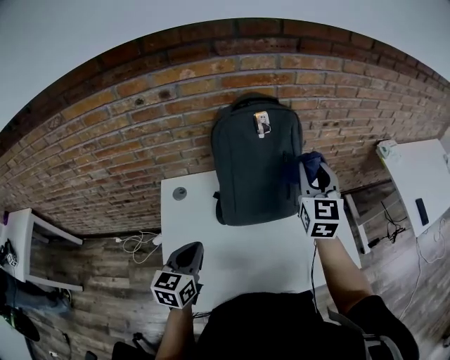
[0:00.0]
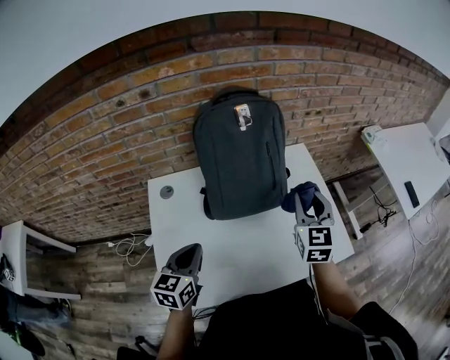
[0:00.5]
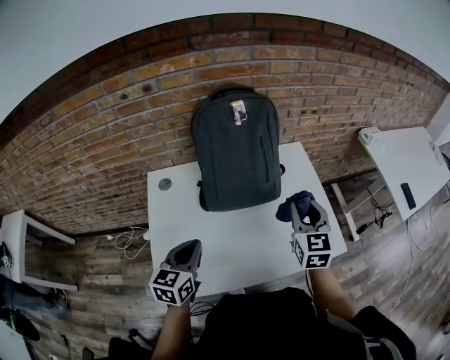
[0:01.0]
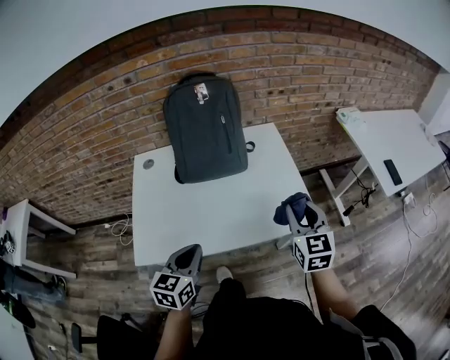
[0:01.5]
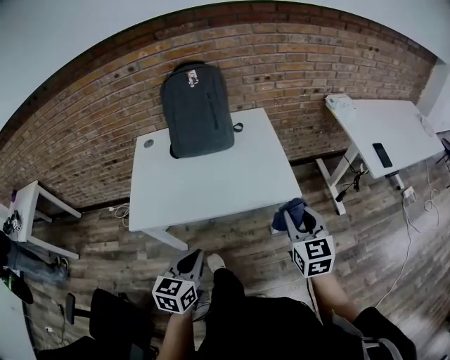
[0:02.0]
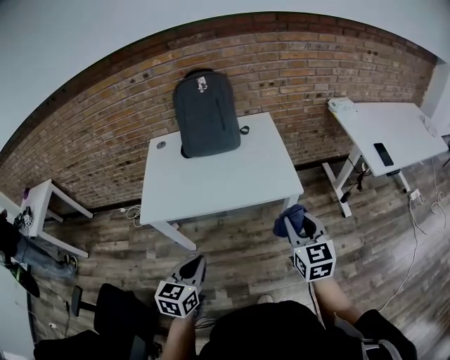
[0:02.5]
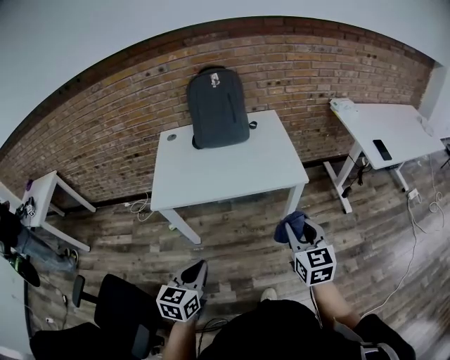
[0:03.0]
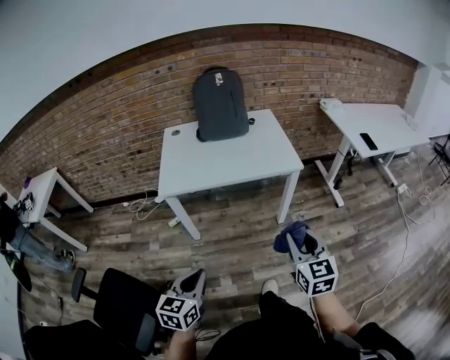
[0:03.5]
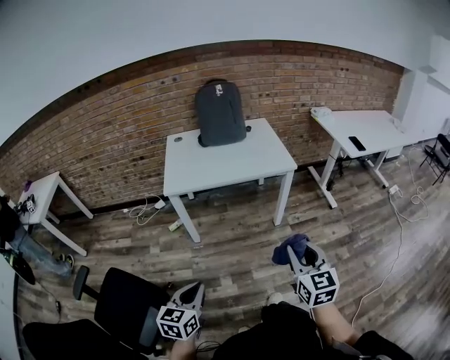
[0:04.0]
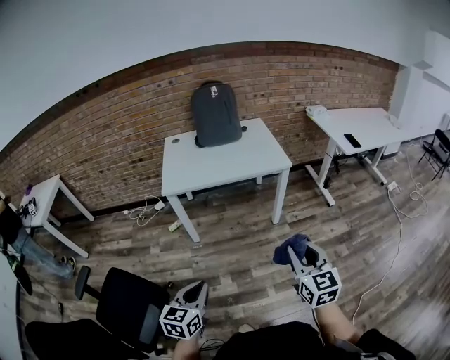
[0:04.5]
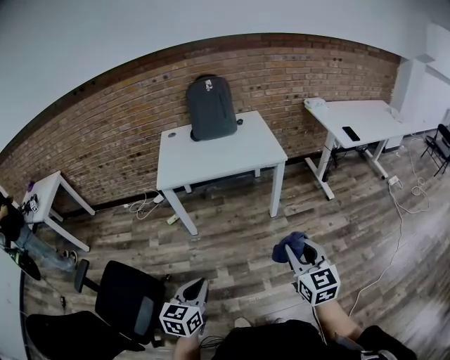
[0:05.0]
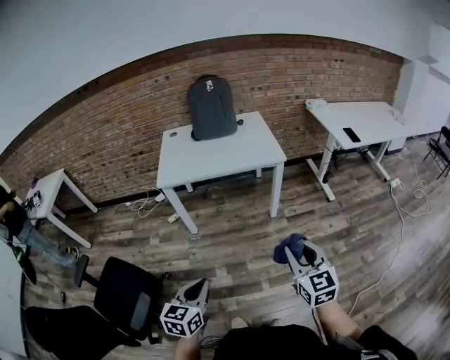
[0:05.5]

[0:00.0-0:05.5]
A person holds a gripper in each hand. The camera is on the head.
0:00.0 to 0:02.0: The two grippers travel together, backward and to the right, roughly 40 cm.
0:02.0 to 0:03.5: The grippers both shift backward by approximately 30 cm.
0:03.5 to 0:05.5: Both grippers travel together backward and to the right, some 15 cm.

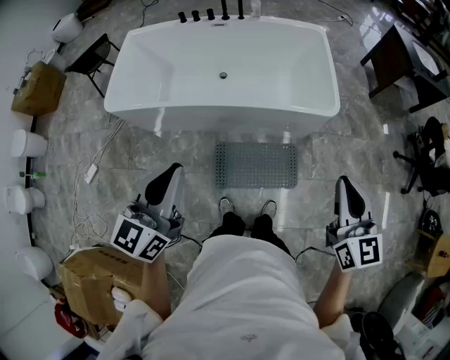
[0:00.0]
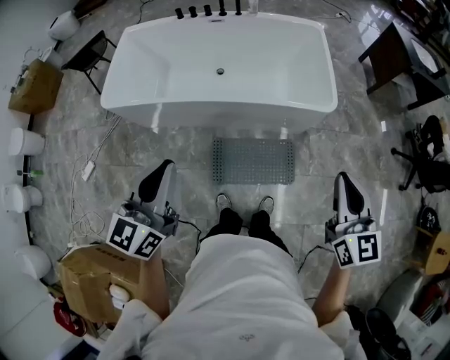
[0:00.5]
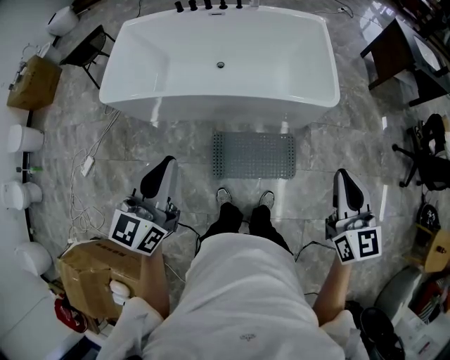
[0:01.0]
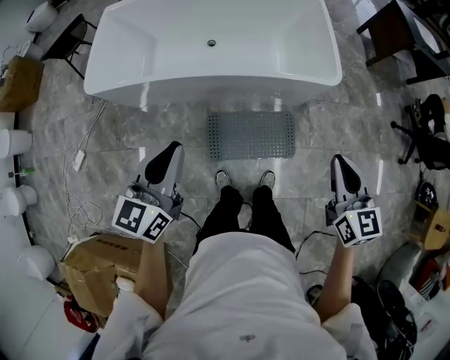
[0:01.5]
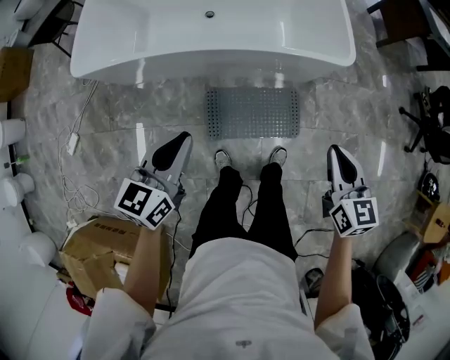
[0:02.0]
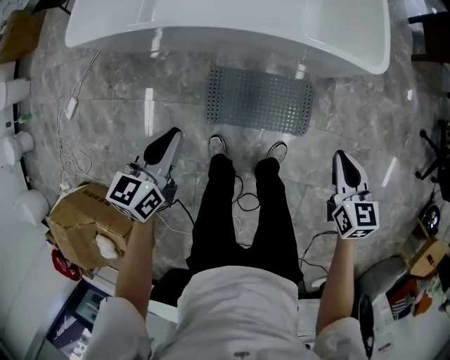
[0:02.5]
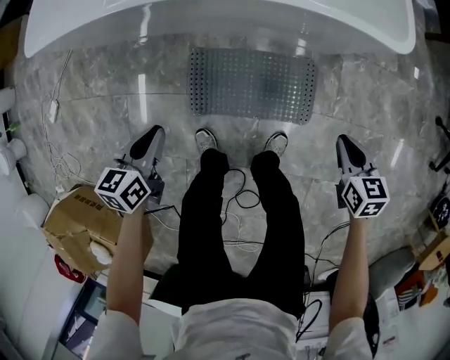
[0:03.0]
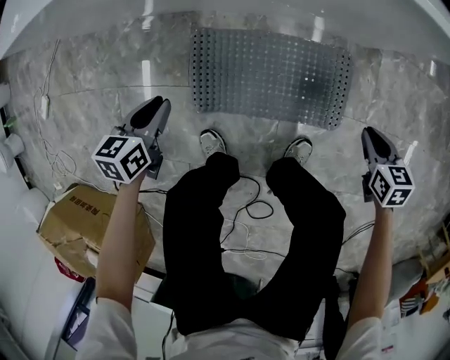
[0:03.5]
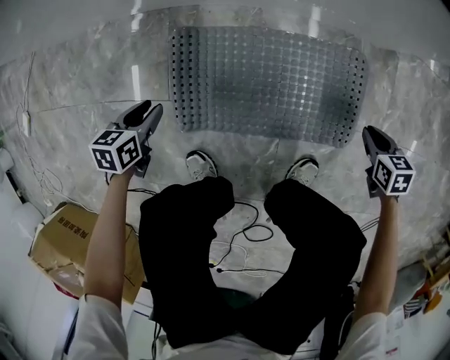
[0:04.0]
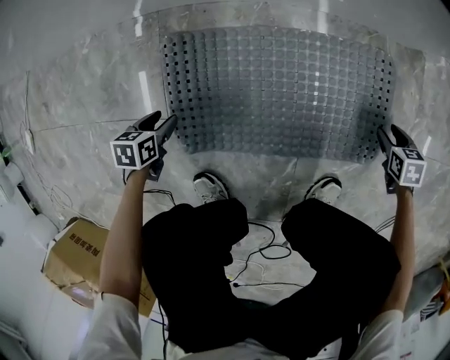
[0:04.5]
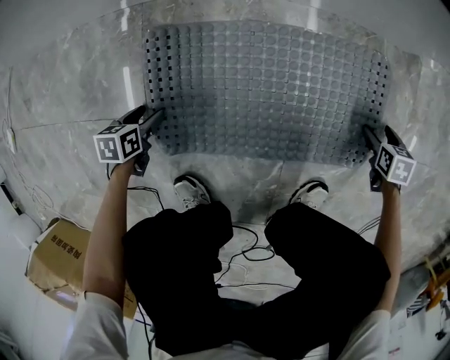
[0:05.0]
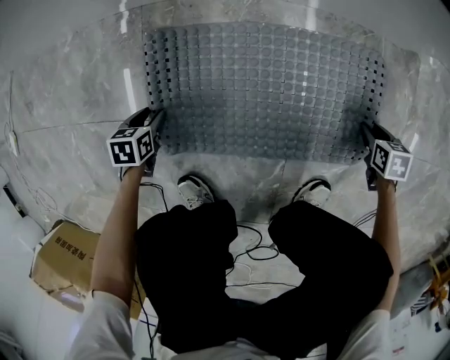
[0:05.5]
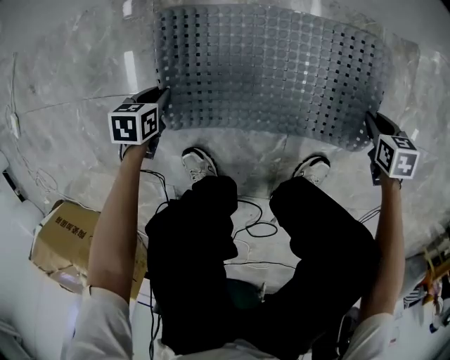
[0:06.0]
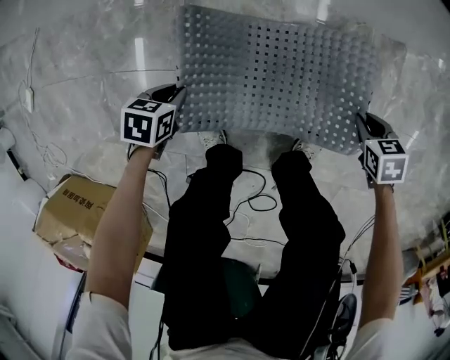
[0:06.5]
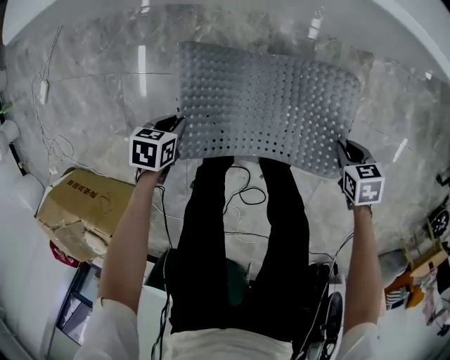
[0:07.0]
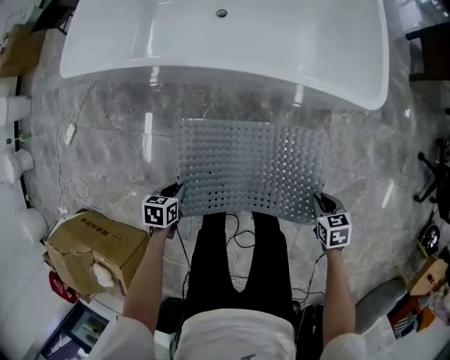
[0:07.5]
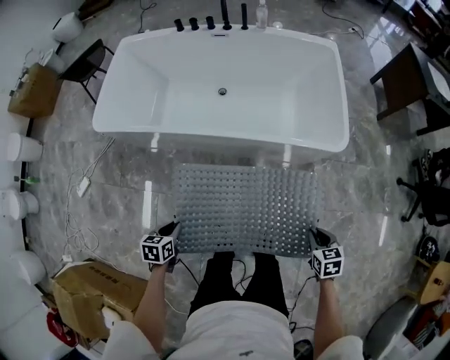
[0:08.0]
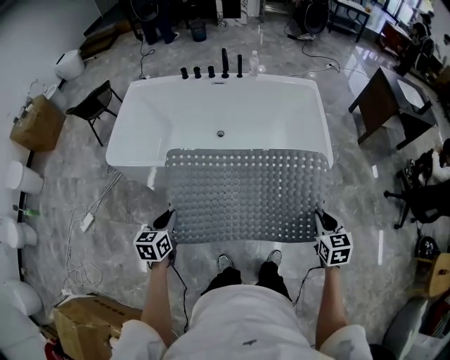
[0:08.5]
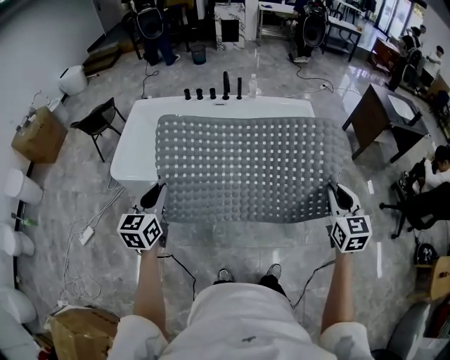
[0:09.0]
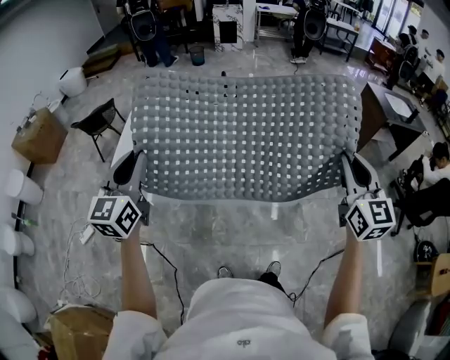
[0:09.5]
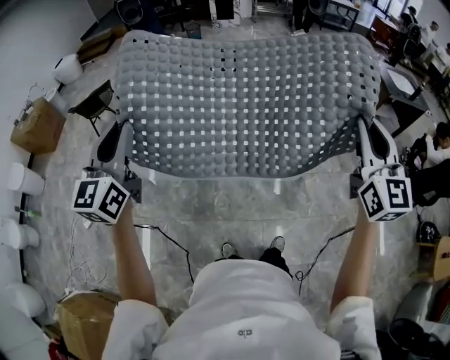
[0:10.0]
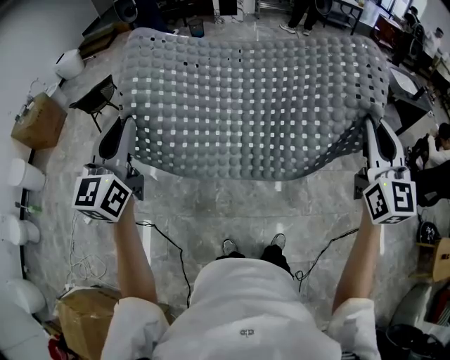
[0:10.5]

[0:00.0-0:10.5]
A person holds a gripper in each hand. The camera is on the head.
0:00.0 to 0:02.0: The grippers both shift downward by approximately 20 cm.
0:02.0 to 0:04.0: The two grippers go roughly 80 cm downward. The right gripper tips its fingers downward by about 40 degrees, while the left gripper tilts its fingers about 40 degrees downward, and opens its fingers.
0:04.0 to 0:06.5: The right gripper travels downward and back again, approximately 15 cm each way, and opens, then closes again; the left gripper travels downward and back again, some 20 cm each way, and opens and closes again.
0:06.5 to 0:08.5: Both grippers travel together upward, some 70 cm. The right gripper angles its fingers upward, by roughly 40 degrees, while the left gripper angles its fingers upward, by some 40 degrees.
0:08.5 to 0:10.5: Both grippers move upward, approximately 35 cm. The right gripper tilts its fingers approximately 50 degrees upward, while the left gripper tips its fingers upward by some 40 degrees.

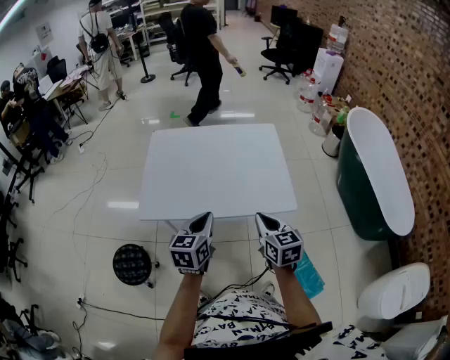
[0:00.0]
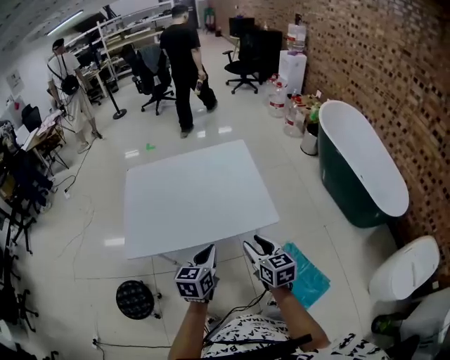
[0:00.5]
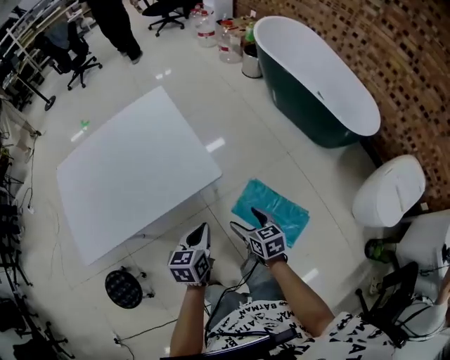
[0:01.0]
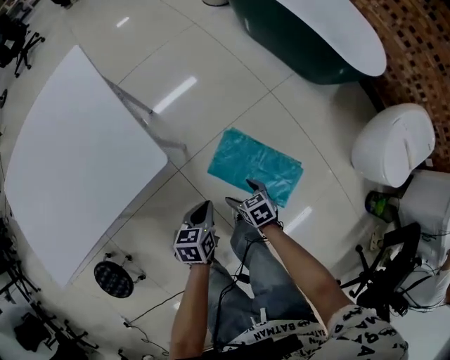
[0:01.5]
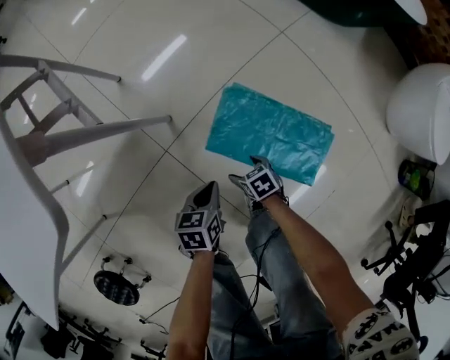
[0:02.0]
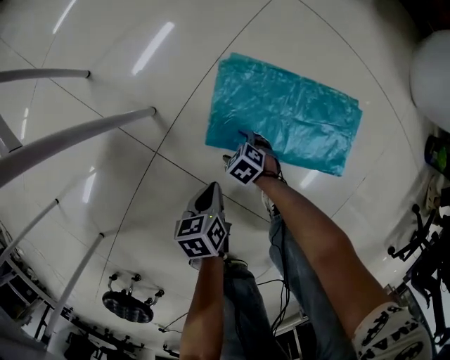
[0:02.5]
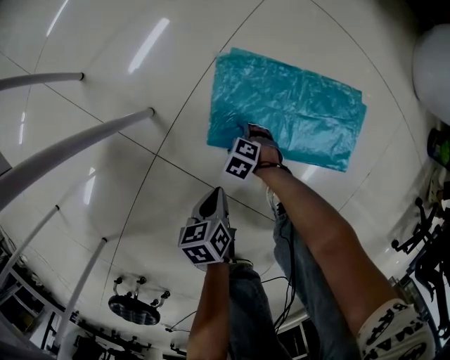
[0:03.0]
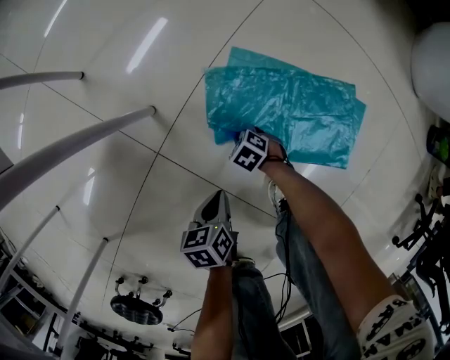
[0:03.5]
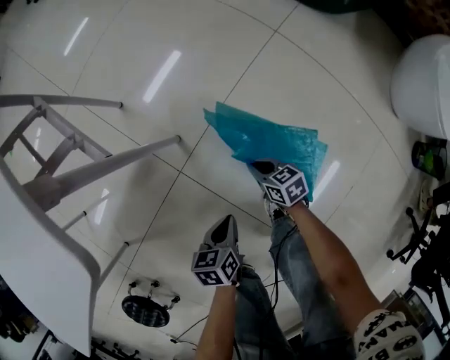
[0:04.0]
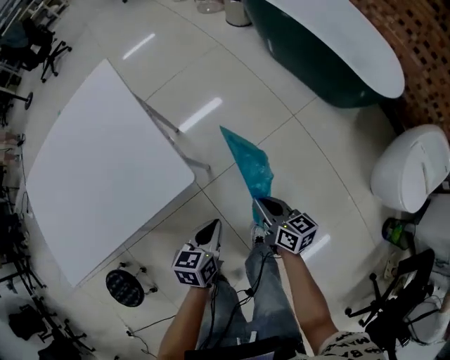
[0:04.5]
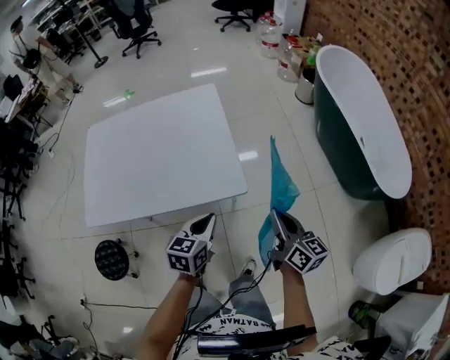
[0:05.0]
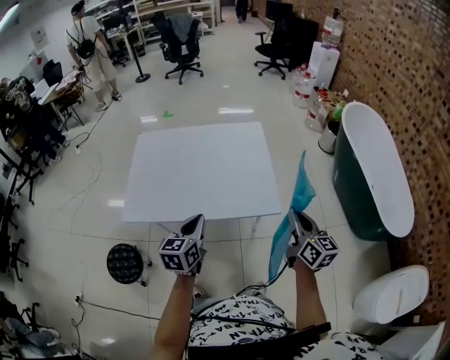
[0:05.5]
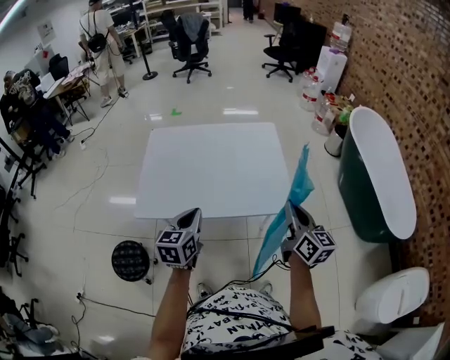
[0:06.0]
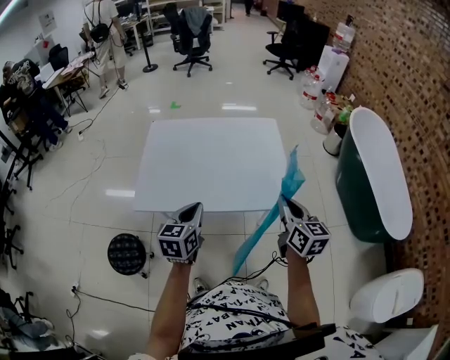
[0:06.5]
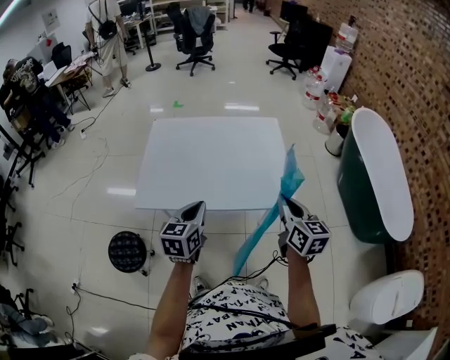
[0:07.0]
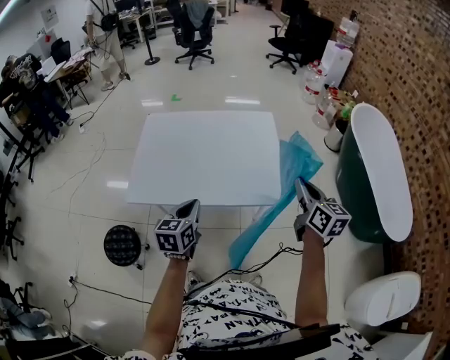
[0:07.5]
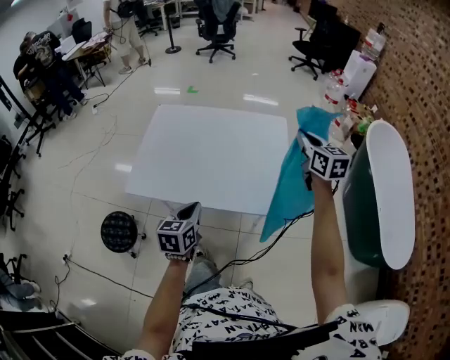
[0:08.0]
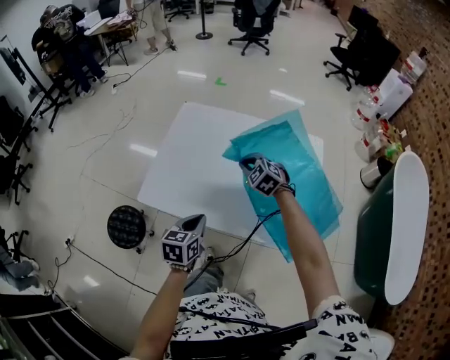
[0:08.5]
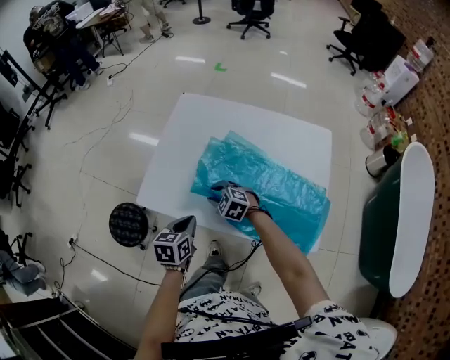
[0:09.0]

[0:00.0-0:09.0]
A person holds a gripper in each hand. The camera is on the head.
0:00.0 to 0:02.0: The right gripper travels downward by some 80 cm, angles its fingers downward, by some 40 degrees, and opens its fingers. The left gripper shifts some 80 cm downward and to the right, and points its fingers approximately 40 degrees further downward.
0:02.0 to 0:04.5: Both grippers move upward, some 40 cm. The right gripper angles its fingers upward, by roughly 50 degrees, and closes.
0:04.5 to 0:07.0: The left gripper moves roughly 50 cm, and turns by some 40 degrees, while the right gripper travels upward by about 40 cm, and changes its angle by about 30 degrees.
0:07.0 to 0:09.0: The right gripper changes place by about 50 cm, and points its fingers some 40 degrees further downward, while the left gripper goes some 15 cm downward, and changes its angle by roughly 30 degrees.

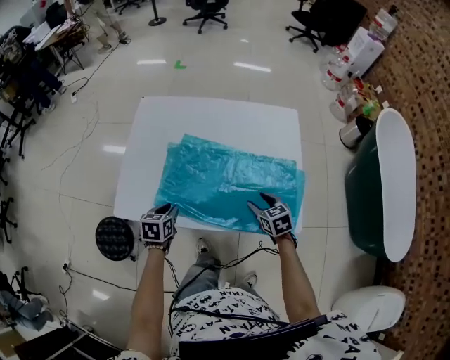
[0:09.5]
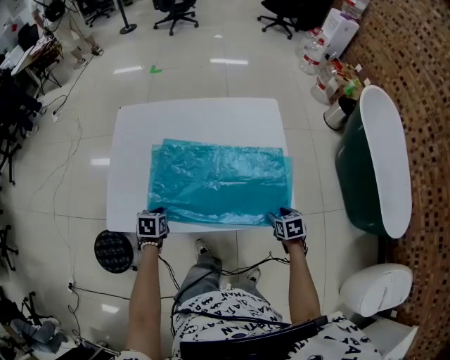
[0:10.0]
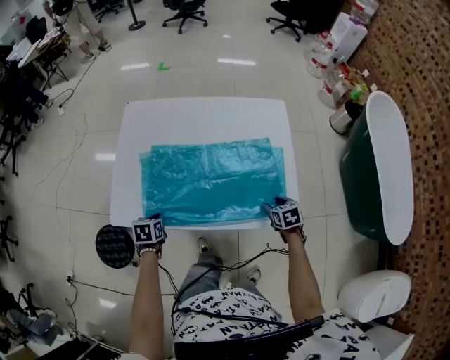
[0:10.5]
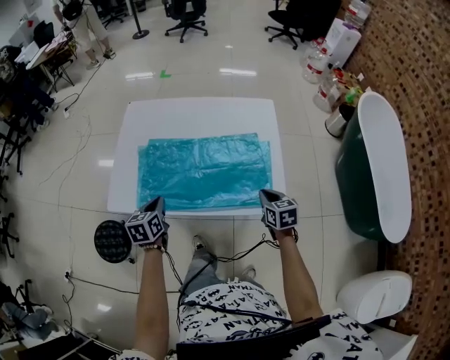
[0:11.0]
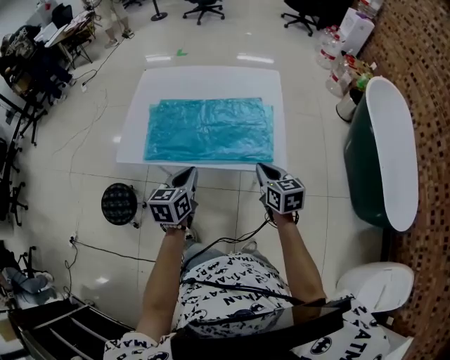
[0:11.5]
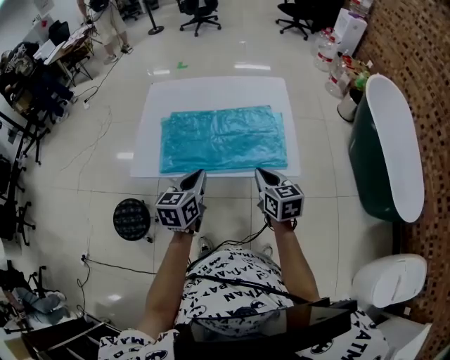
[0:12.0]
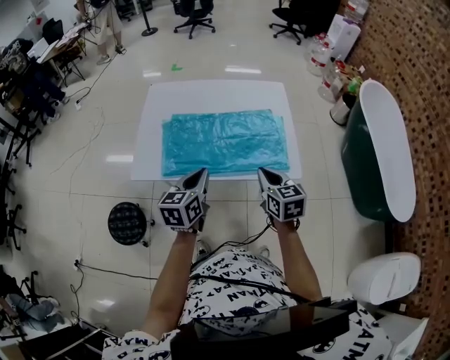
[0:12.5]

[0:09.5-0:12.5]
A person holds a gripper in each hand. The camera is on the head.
0:09.5 to 0:11.0: The left gripper shifts approximately 10 cm upward, and closes its fingers, while the right gripper travels to the right and backward by some 10 cm, and closes its fingers.
0:11.0 to 0:12.5: The left gripper moves upward, backward and to the right, about 15 cm, and turns by about 20 degrees, while the right gripper moves upward, to the left and backward, some 20 cm.
